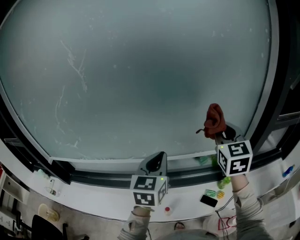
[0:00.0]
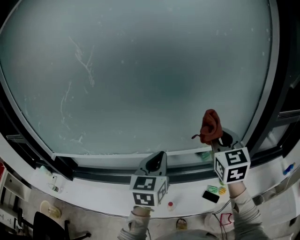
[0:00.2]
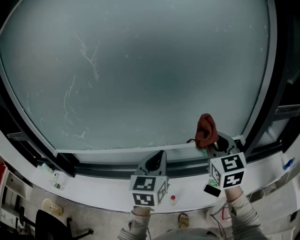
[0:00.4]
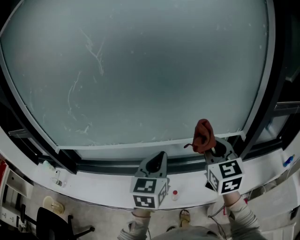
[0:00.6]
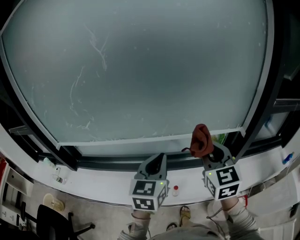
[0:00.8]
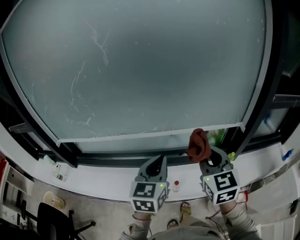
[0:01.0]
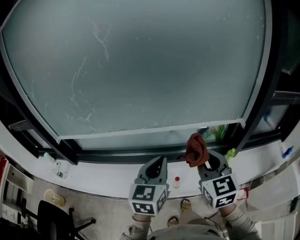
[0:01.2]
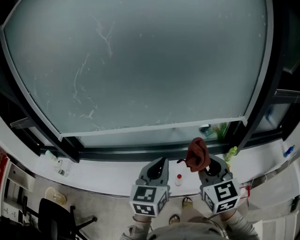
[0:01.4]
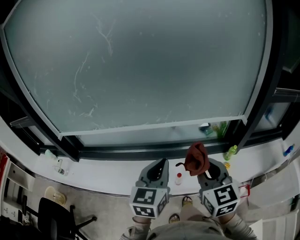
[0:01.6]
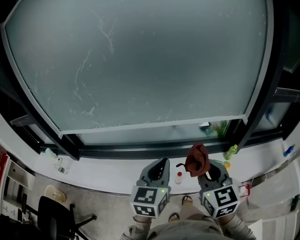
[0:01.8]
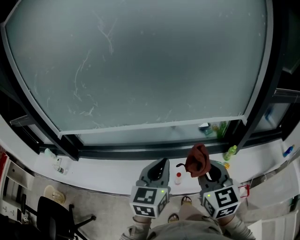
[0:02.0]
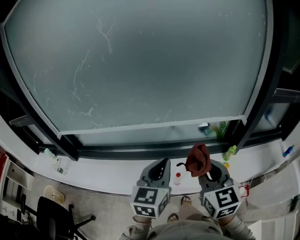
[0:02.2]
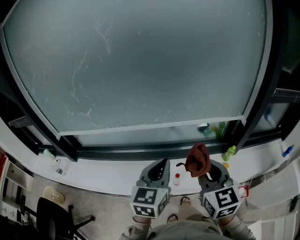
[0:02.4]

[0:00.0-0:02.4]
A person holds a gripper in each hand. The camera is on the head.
0:00.0 to 0:01.2: The left gripper is displaced backward by roughly 20 cm; the right gripper moves backward, to the left and downward, roughly 30 cm.
0:01.2 to 0:02.4: The grippers stay close to where they were, moving slightly.

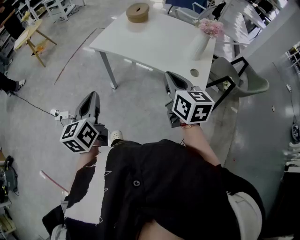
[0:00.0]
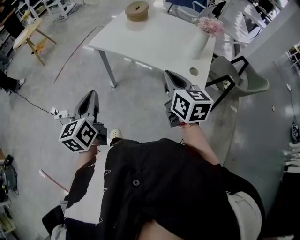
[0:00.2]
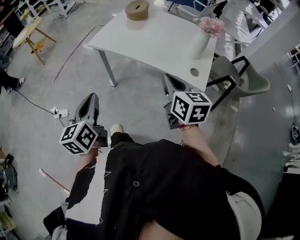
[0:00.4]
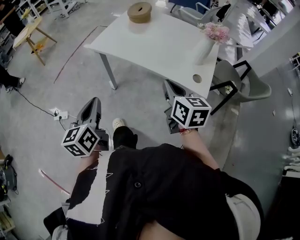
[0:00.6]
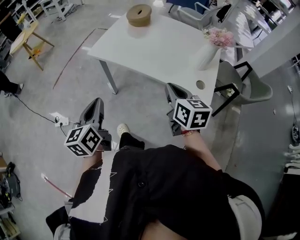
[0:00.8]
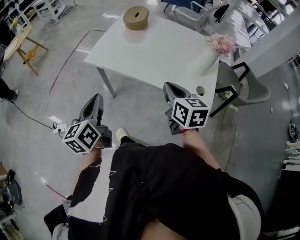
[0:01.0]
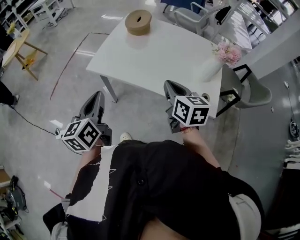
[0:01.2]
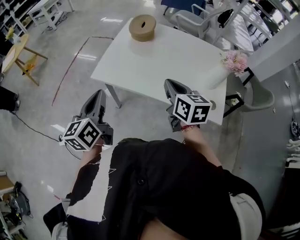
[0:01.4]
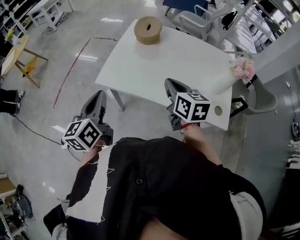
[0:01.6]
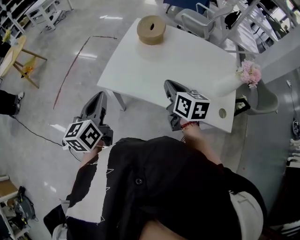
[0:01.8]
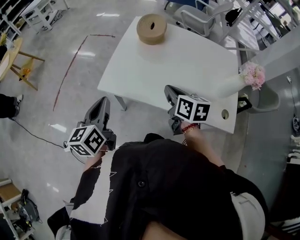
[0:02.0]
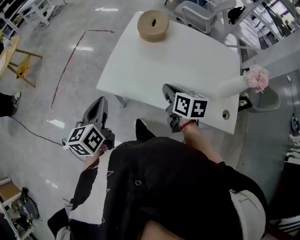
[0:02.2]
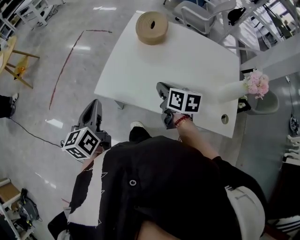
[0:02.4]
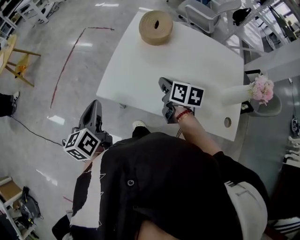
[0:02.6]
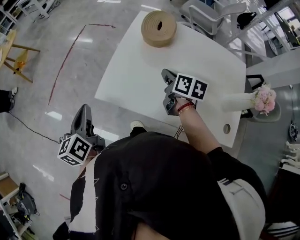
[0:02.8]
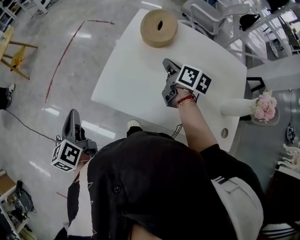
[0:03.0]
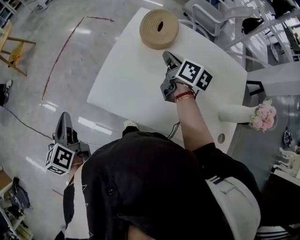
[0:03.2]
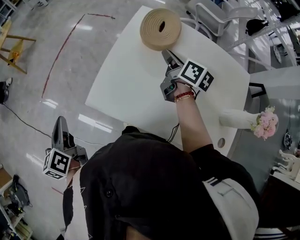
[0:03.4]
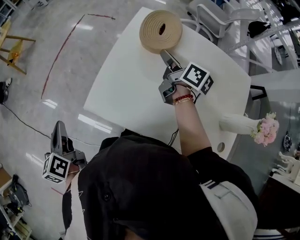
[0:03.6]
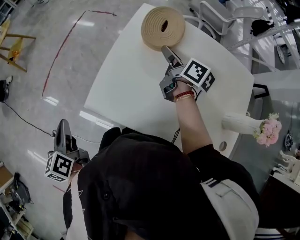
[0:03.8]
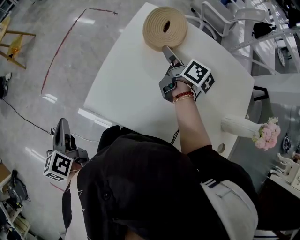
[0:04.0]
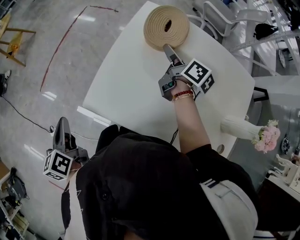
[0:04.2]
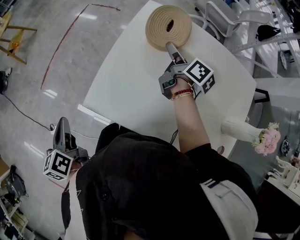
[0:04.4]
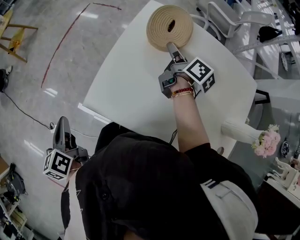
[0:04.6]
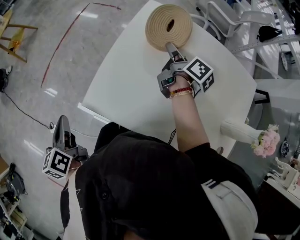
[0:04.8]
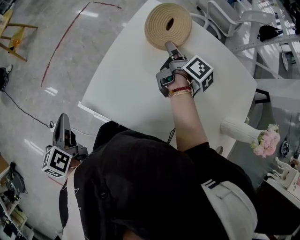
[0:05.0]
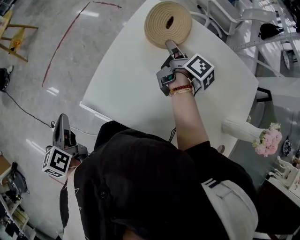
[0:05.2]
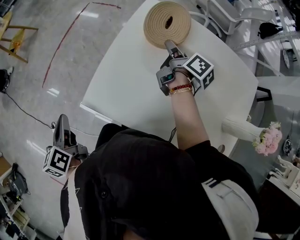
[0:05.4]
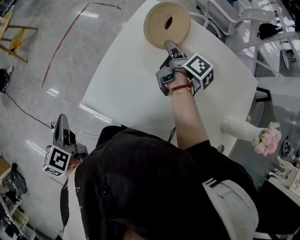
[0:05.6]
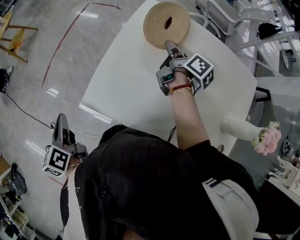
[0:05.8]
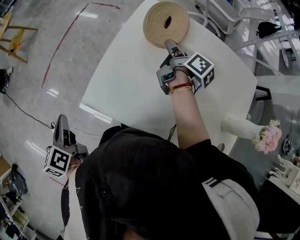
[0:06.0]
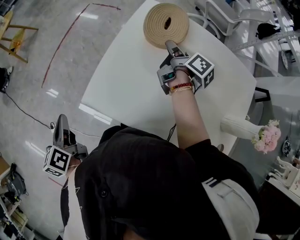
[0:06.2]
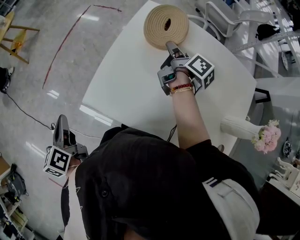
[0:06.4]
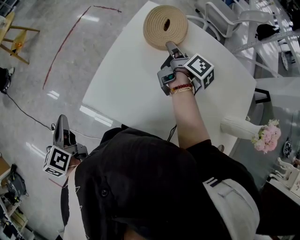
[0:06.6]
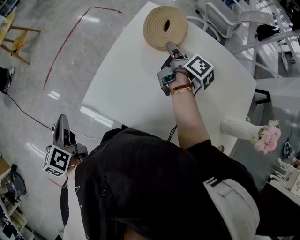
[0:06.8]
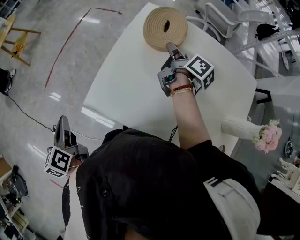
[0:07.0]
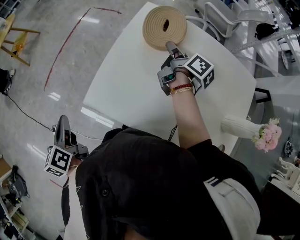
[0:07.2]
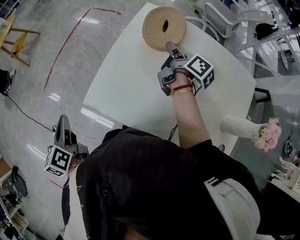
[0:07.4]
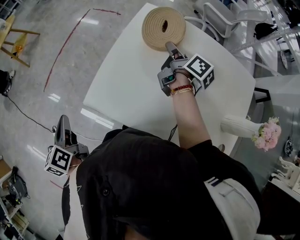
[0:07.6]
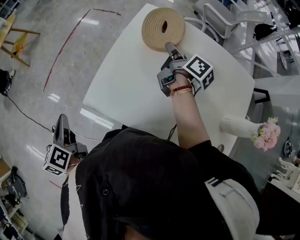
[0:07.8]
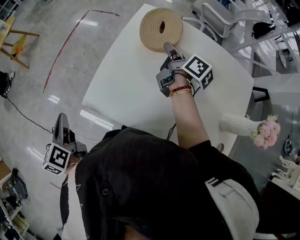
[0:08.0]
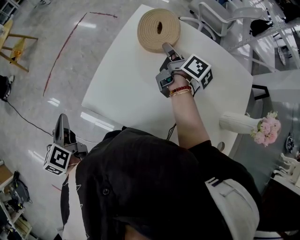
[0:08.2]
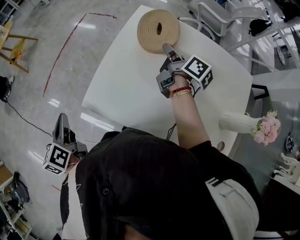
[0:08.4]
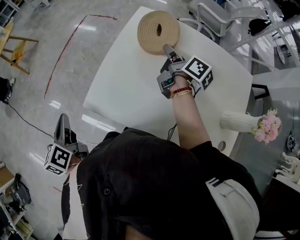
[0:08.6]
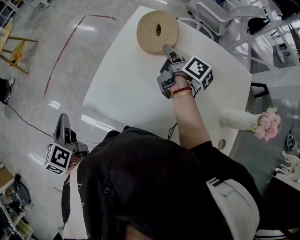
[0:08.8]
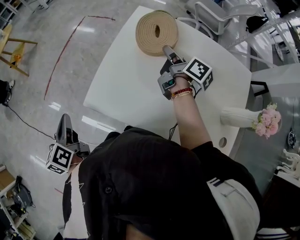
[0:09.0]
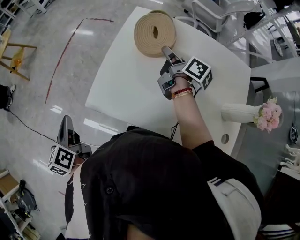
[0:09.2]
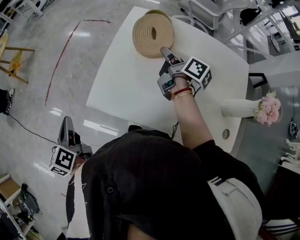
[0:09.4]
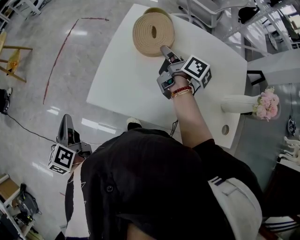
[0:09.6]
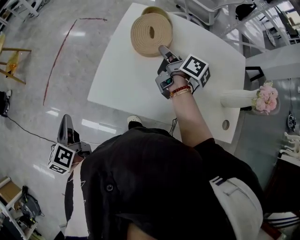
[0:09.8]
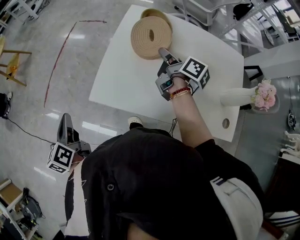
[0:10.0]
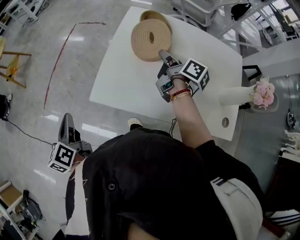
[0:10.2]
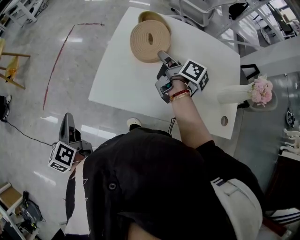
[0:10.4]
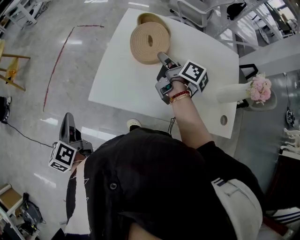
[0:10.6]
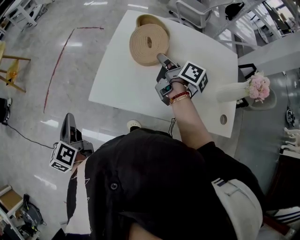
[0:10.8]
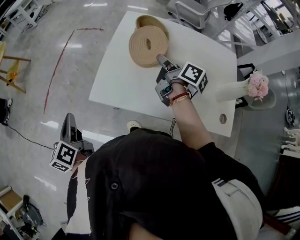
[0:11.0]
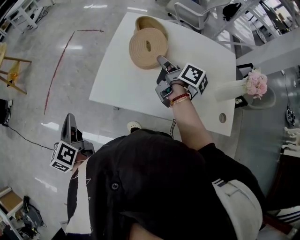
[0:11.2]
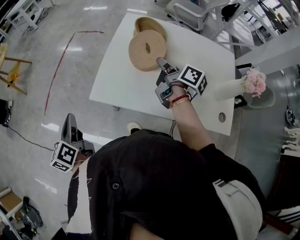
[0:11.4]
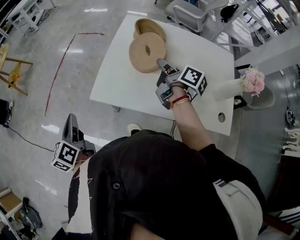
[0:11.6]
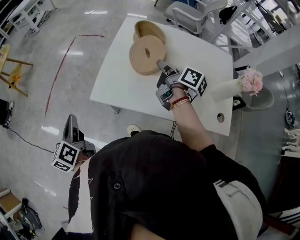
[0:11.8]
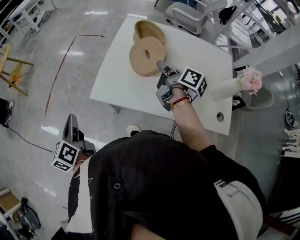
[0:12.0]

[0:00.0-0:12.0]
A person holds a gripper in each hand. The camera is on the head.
0:00.0 to 0:01.6: Both grippers travel together forward, some 30 cm.
0:01.6 to 0:03.0: The left gripper goes roughly 20 cm to the left, forward and downward, and swivels about 20 degrees. The right gripper goes about 25 cm forward, and changes its angle by some 20 degrees.
0:03.0 to 0:04.4: The right gripper is displaced forward by approximately 10 cm, rotates roughly 20 degrees, and opens its fingers.
0:04.4 to 0:06.0: The right gripper closes its fingers.
0:06.0 to 0:09.0: The grippers stay close to where they were, moving slightly.
0:09.0 to 0:10.4: The right gripper travels backward by approximately 10 cm.
0:10.4 to 0:12.0: The right gripper moves backward, approximately 5 cm.

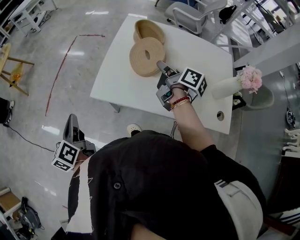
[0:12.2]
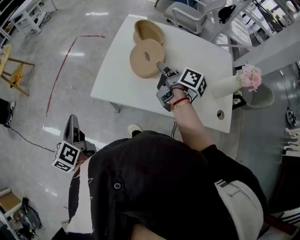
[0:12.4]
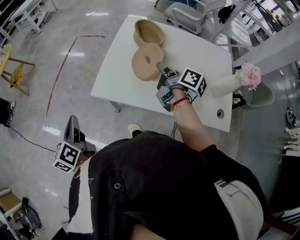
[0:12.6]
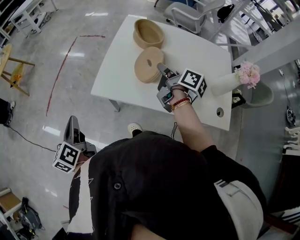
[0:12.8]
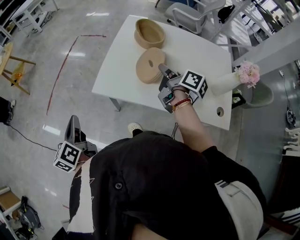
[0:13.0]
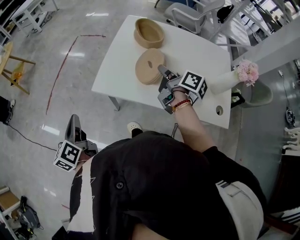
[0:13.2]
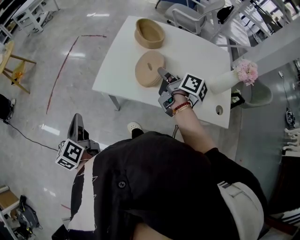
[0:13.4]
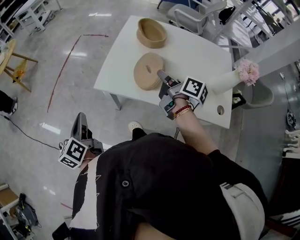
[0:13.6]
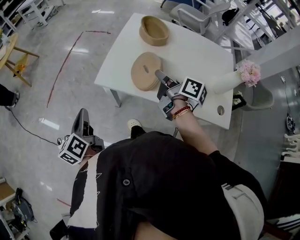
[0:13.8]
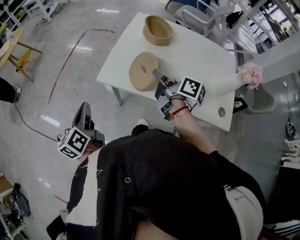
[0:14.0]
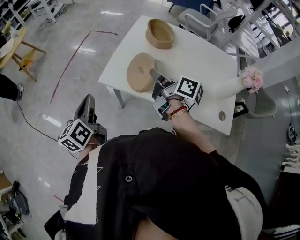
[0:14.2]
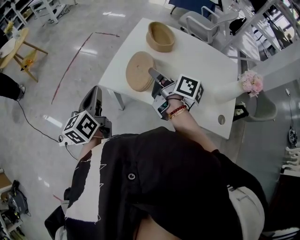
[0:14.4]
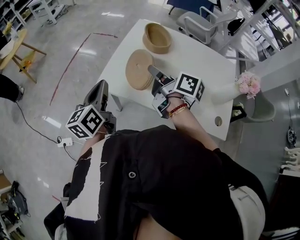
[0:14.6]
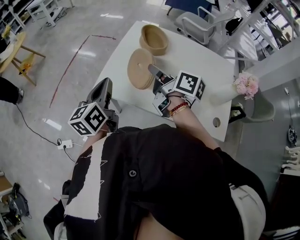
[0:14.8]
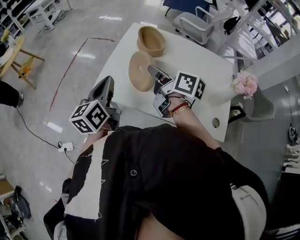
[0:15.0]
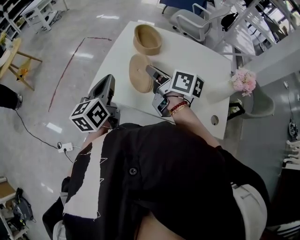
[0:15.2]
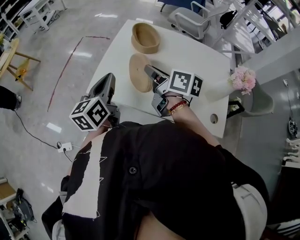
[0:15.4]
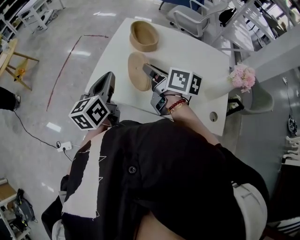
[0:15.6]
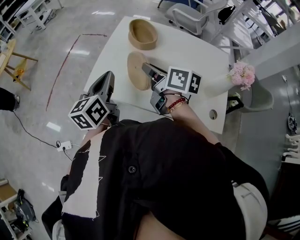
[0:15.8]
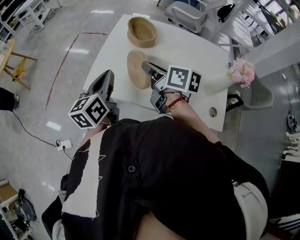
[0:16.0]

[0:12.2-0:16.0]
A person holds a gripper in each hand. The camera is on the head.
0:12.2 to 0:13.4: The right gripper heads backward, covering approximately 5 cm.
0:13.4 to 0:14.8: The left gripper moves to the right and upward, approximately 20 cm. The right gripper shifts approximately 5 cm upward.
0:14.8 to 0:16.0: The grippers move only a little.

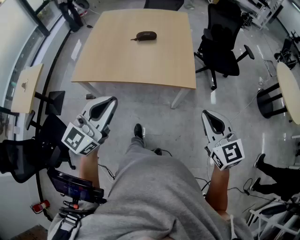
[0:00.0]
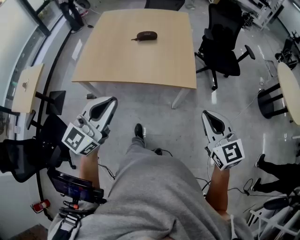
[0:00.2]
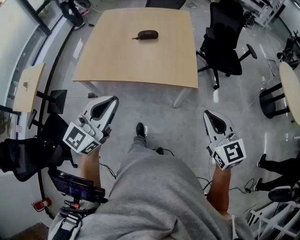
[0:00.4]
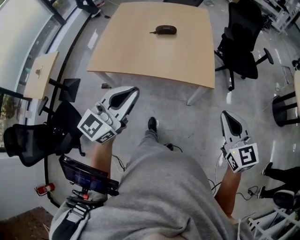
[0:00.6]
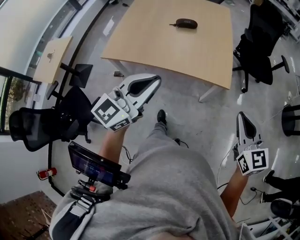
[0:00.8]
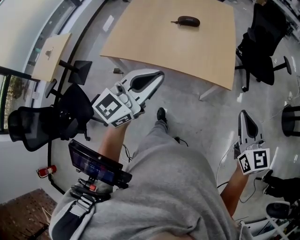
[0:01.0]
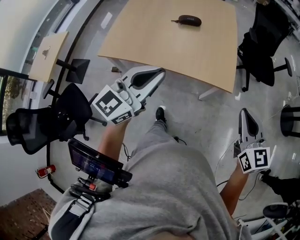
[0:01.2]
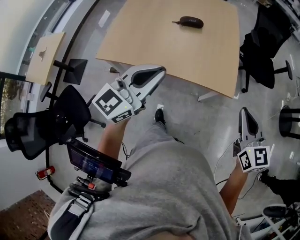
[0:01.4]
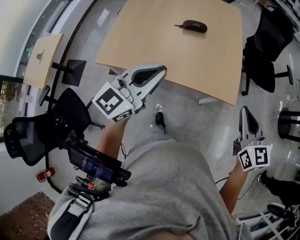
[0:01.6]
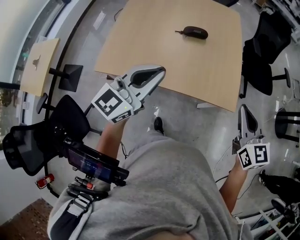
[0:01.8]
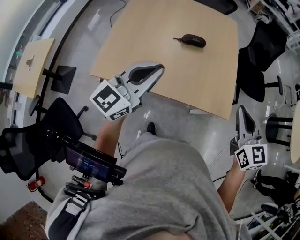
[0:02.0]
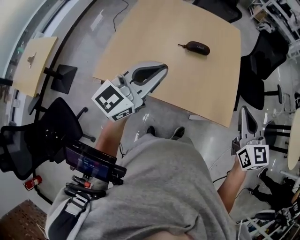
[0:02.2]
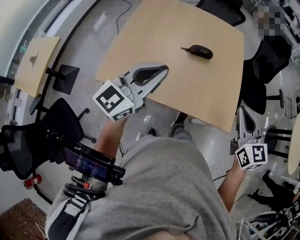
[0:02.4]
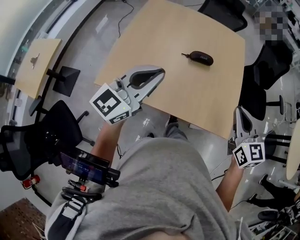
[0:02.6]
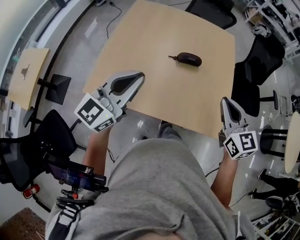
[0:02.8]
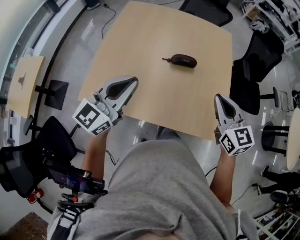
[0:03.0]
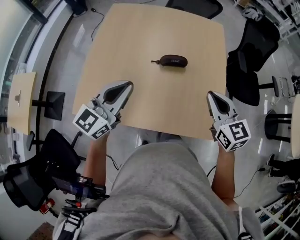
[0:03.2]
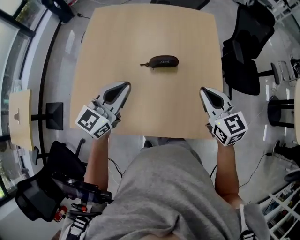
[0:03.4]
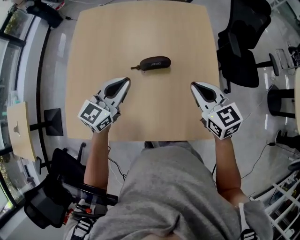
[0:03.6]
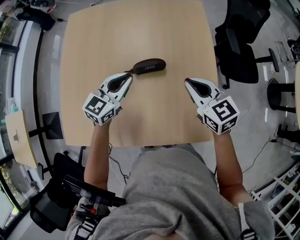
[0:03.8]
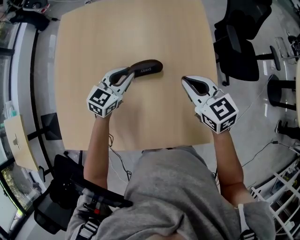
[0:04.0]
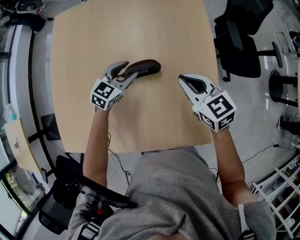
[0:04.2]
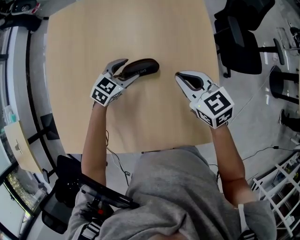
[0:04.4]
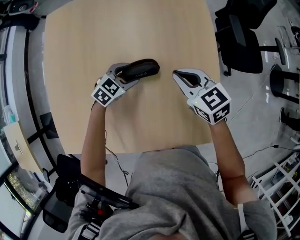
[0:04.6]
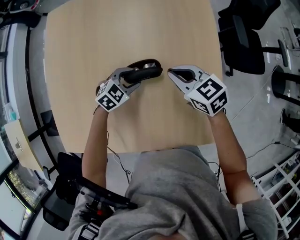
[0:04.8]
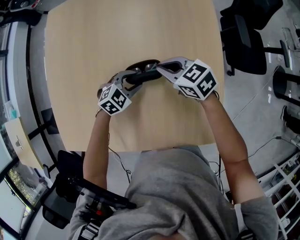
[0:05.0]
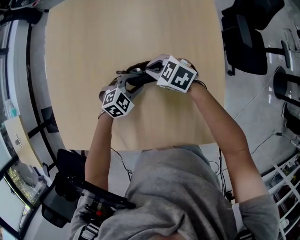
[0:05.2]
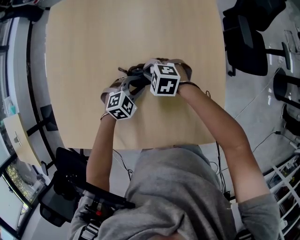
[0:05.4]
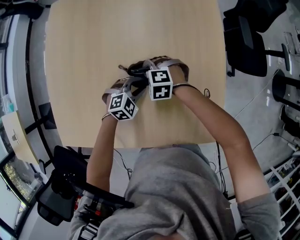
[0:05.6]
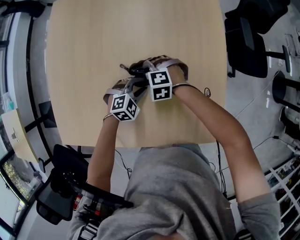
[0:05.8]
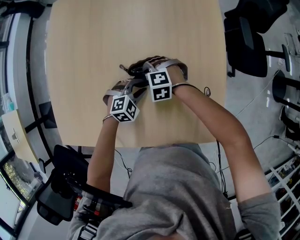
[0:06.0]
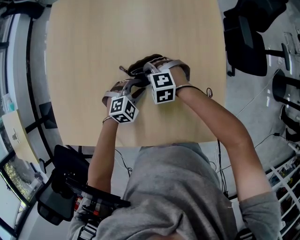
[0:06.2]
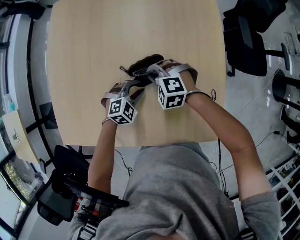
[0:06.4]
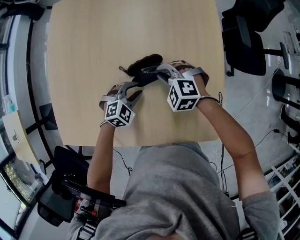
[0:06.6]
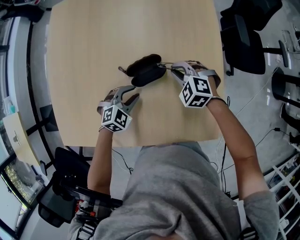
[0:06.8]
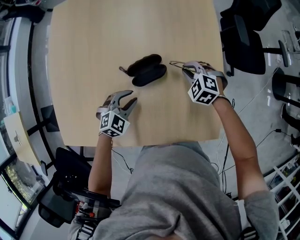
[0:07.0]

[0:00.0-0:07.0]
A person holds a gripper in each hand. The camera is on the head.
0:00.0 to 0:01.4: Both grippers travel together forward, roughly 15 cm.
0:01.4 to 0:02.8: Both grippers travel together forward and to the left, roughly 30 cm.
0:02.8 to 0:04.2: The right gripper is displaced forward and downward by roughly 35 cm. The left gripper travels forward, downward and to the right by some 50 cm, tilts its fingers approximately 30 degrees downward, and opens.
0:04.2 to 0:05.6: The left gripper shifts roughly 10 cm downward, swivels some 40 degrees, and opens, then closes again; the right gripper is displaced downward by roughly 20 cm, and twists approximately 50 degrees counterclockwise, seen from behind.
0:05.6 to 0:07.0: The right gripper shifts about 15 cm to the right. The left gripper goes some 5 cm backward.
